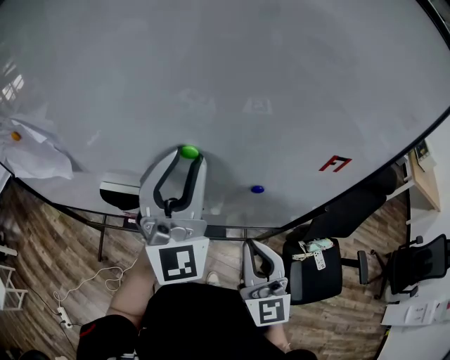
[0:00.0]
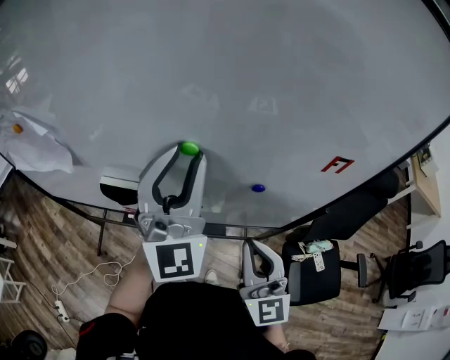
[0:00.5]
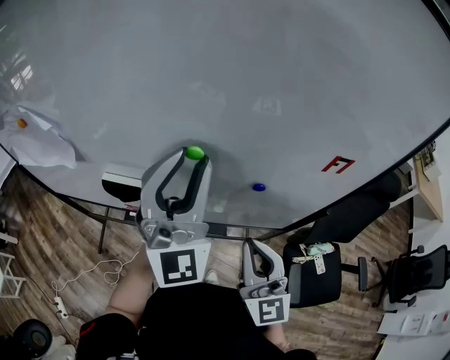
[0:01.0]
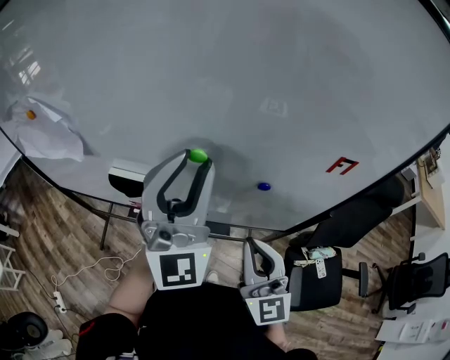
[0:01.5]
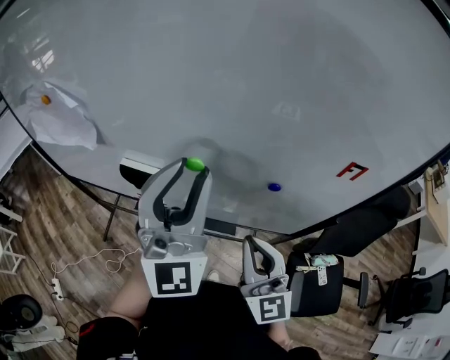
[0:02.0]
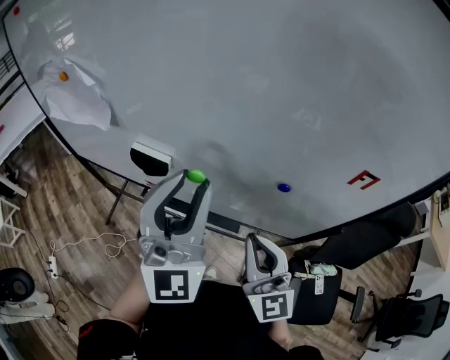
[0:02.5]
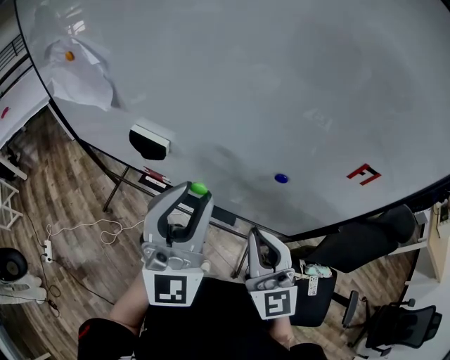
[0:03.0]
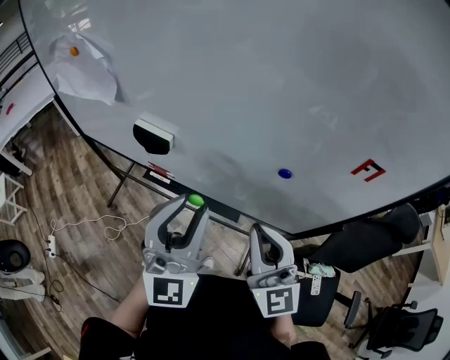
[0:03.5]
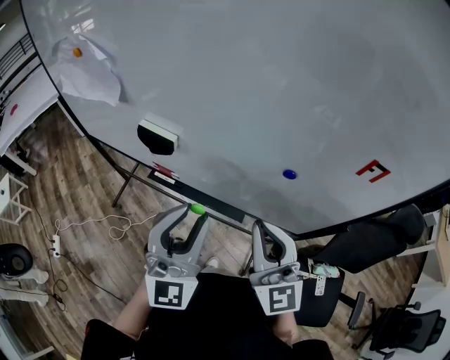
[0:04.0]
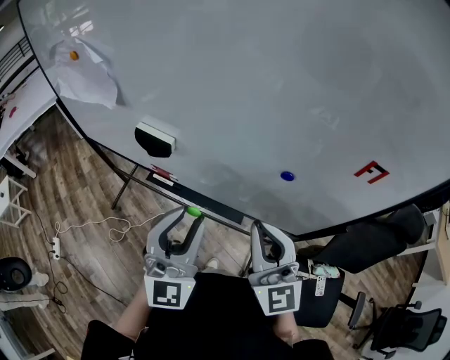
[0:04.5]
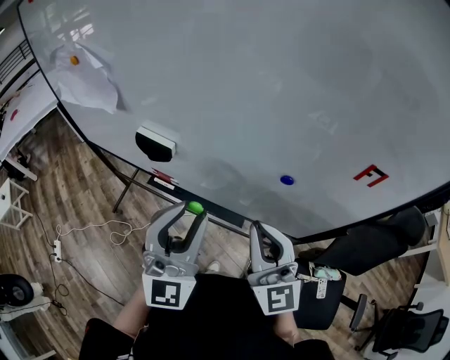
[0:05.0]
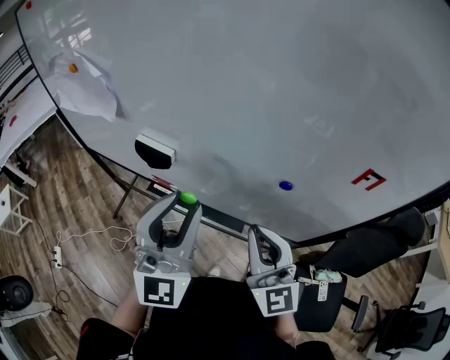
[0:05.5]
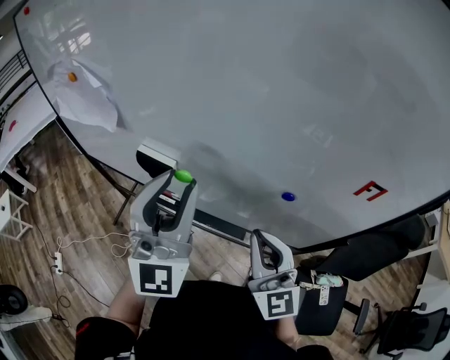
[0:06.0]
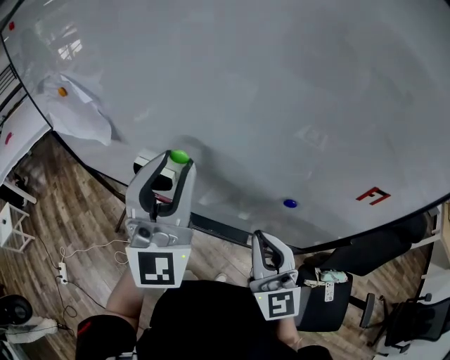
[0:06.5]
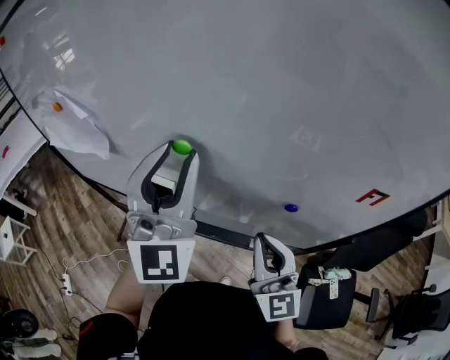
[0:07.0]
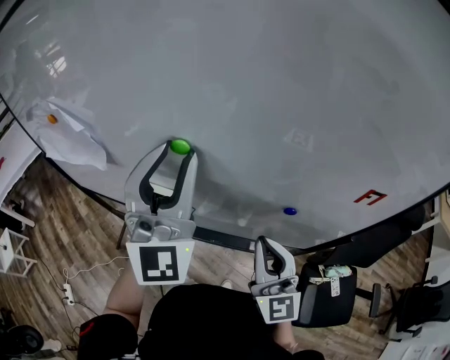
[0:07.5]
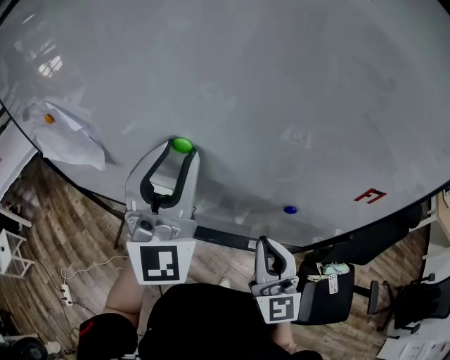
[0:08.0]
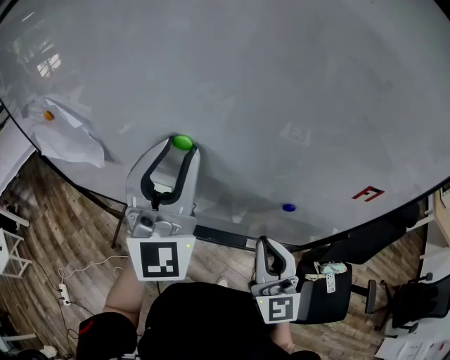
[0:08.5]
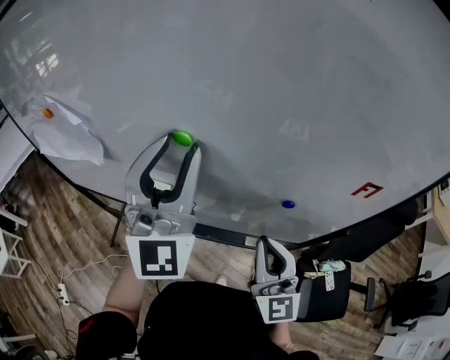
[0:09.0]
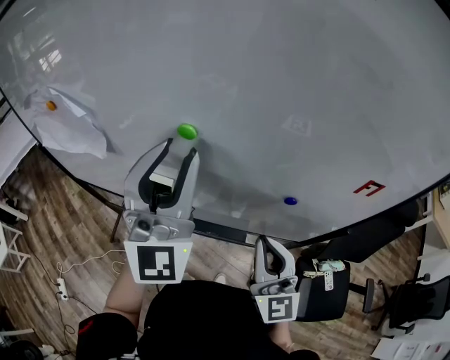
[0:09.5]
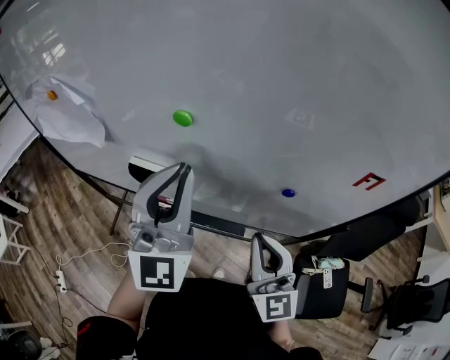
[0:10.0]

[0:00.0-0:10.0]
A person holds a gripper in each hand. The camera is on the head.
0:00.0 to 0:02.0: The left gripper is displaced backward by approximately 5 cm.
0:02.0 to 0:04.0: The left gripper heads downward and backward, covering some 15 cm.
0:04.0 to 0:06.0: The left gripper moves upward and forward, approximately 10 cm.
0:06.0 to 0:08.0: The left gripper travels forward and upward by some 10 cm.
0:08.0 to 0:10.0: The left gripper shifts by roughly 5 cm, and closes its fingers.

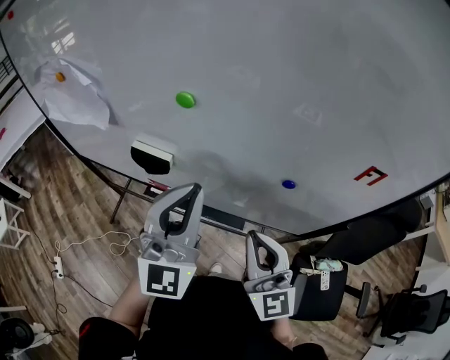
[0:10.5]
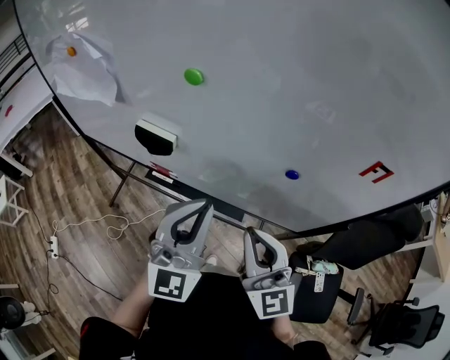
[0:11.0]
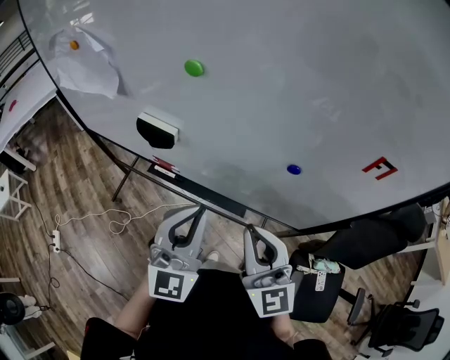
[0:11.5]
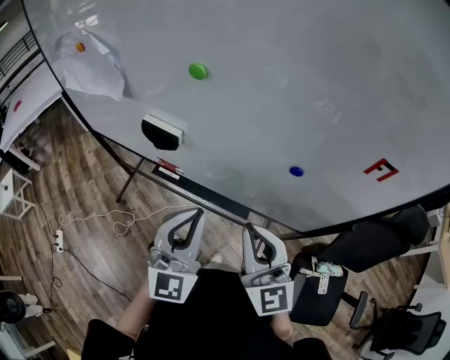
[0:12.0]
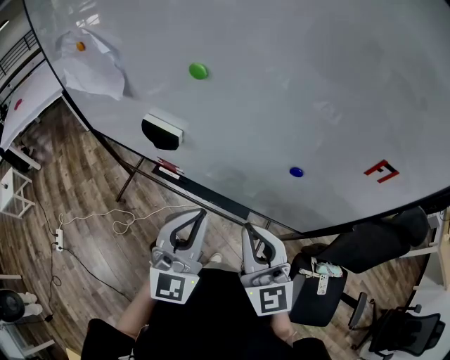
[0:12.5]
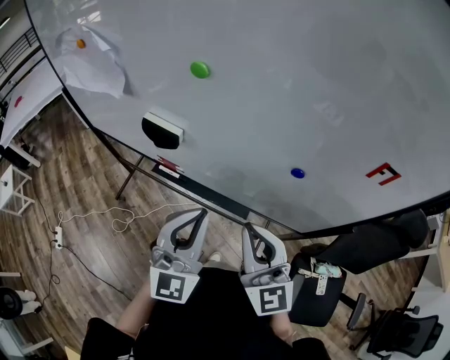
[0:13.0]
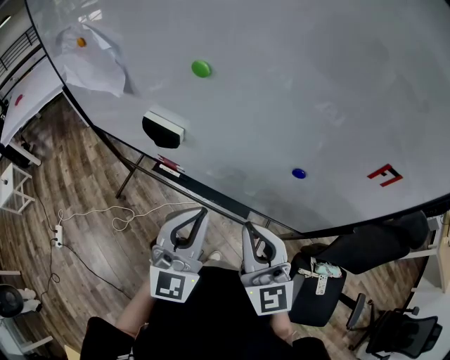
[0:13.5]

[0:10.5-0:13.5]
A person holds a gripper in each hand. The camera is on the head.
0:10.5 to 0:12.0: The left gripper heads downward and backward, covering some 10 cm.
0:12.0 to 0:13.5: Neither gripper changes place.

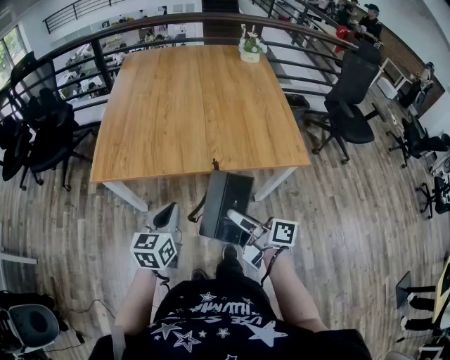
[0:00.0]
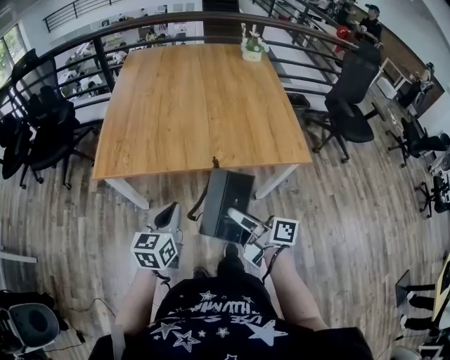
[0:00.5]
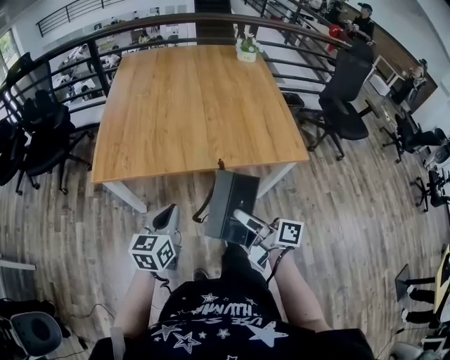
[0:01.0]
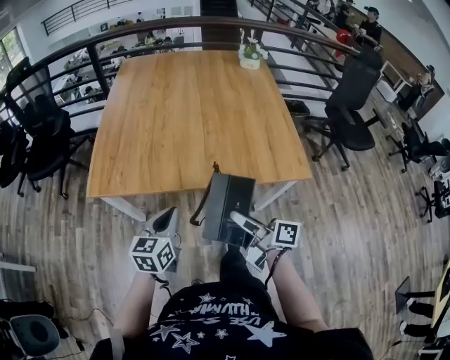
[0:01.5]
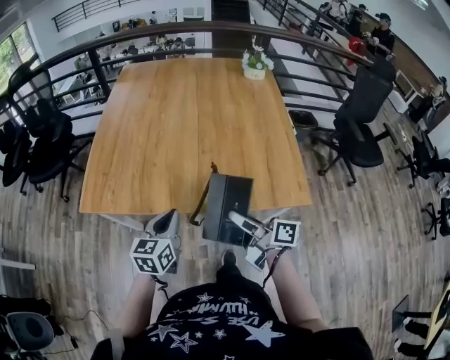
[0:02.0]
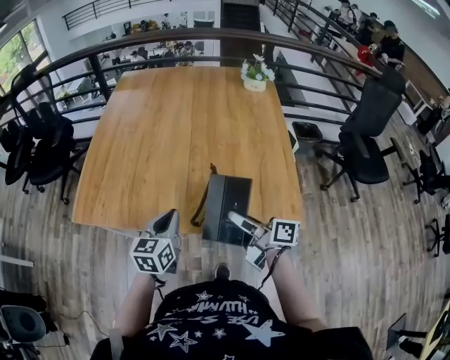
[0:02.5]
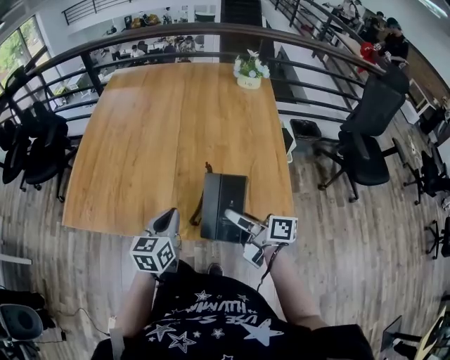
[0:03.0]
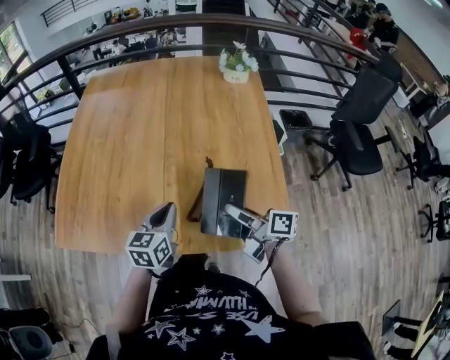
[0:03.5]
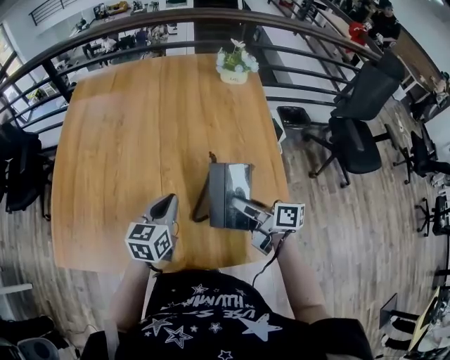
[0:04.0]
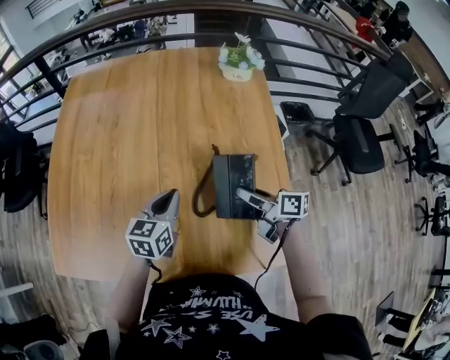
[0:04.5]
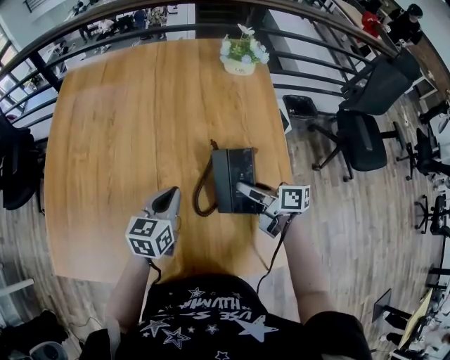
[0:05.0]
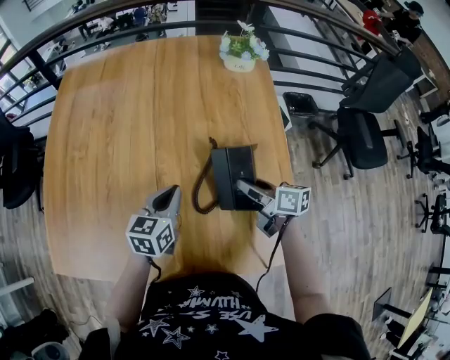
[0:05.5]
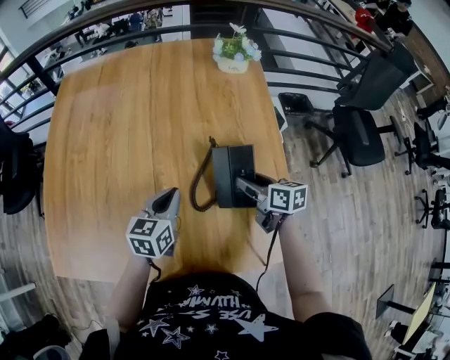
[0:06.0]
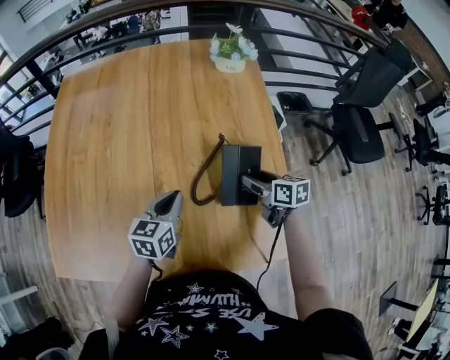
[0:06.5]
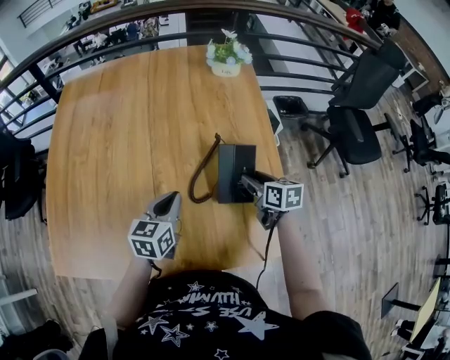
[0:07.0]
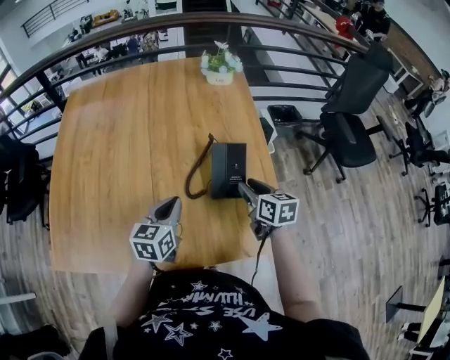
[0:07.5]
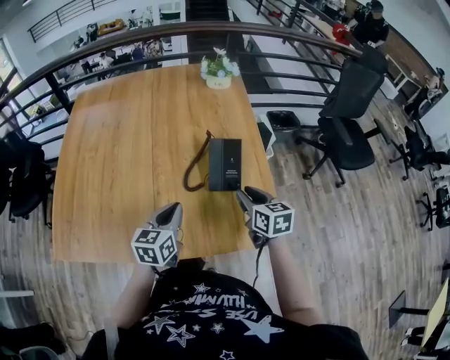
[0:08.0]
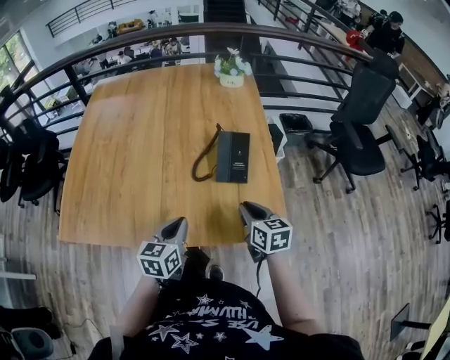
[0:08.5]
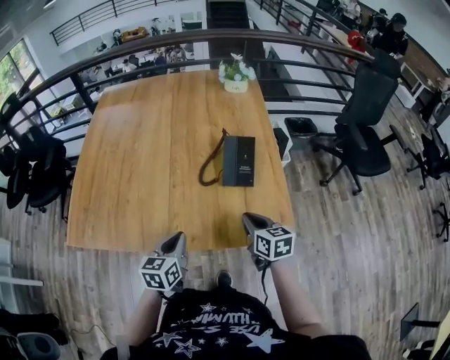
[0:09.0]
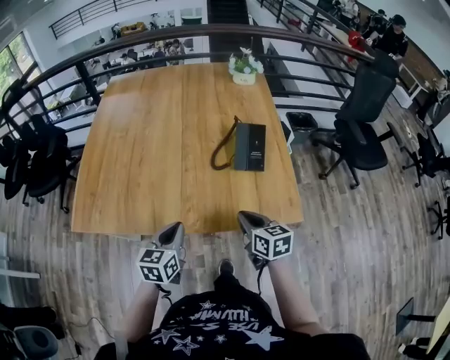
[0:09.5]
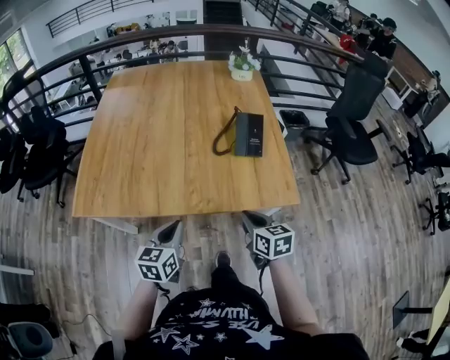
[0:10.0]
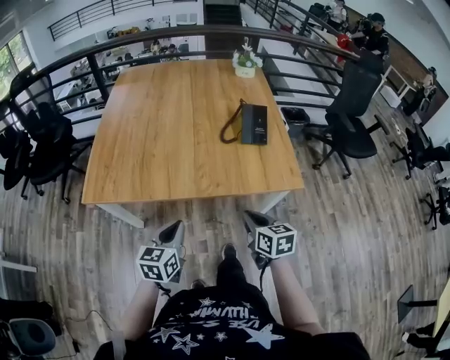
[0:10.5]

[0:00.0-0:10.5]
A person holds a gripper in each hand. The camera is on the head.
0:00.0 to 0:02.0: The two grippers go approximately 15 cm forward and to the right.
0:02.0 to 0:04.0: Both grippers move forward and to the right, some 30 cm.
0:04.0 to 0:06.5: The right gripper heads to the right, forward and downward, covering approximately 15 cm, swivels some 30 degrees, and opens its fingers; the left gripper moves some 5 cm.
0:06.5 to 0:08.5: The grippers both shift backward by some 20 cm. The right gripper closes.
0:08.5 to 0:10.5: Both grippers move backward and to the left, roughly 25 cm.

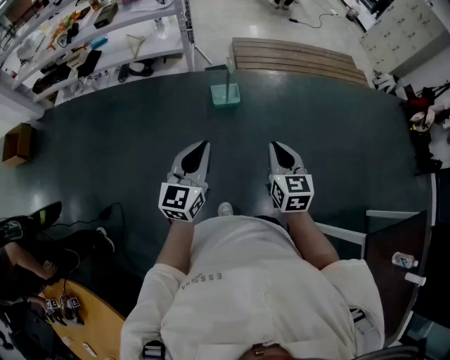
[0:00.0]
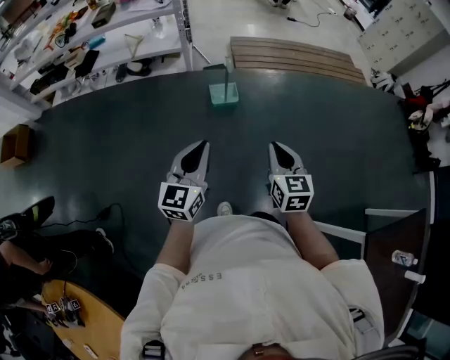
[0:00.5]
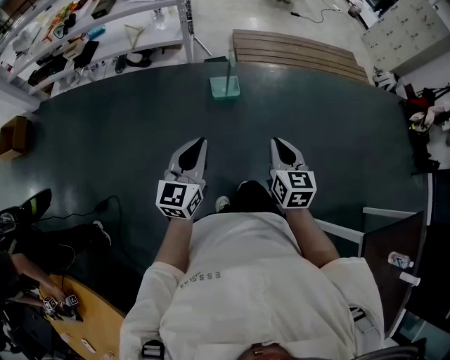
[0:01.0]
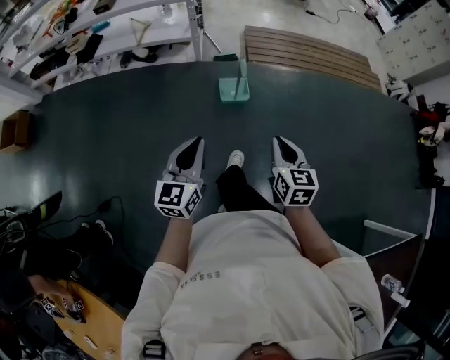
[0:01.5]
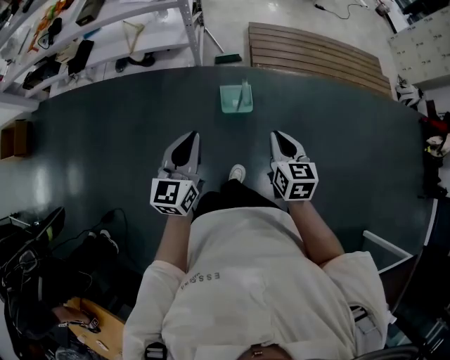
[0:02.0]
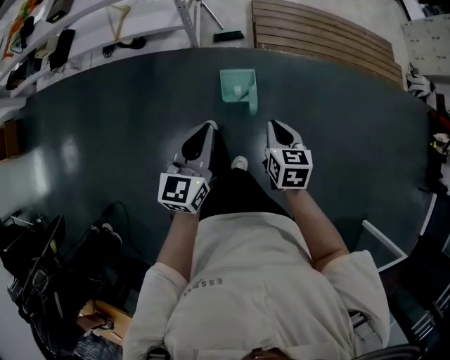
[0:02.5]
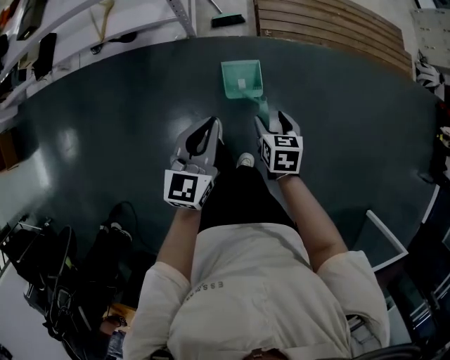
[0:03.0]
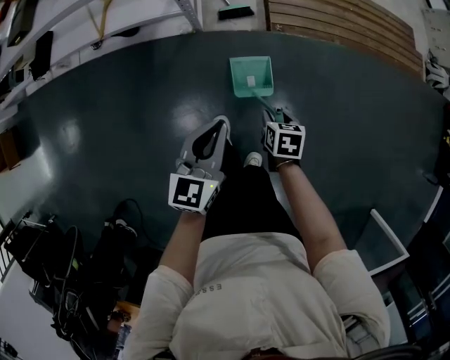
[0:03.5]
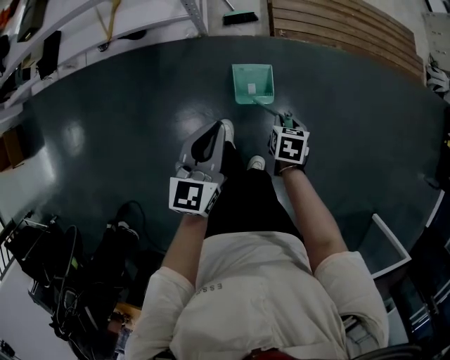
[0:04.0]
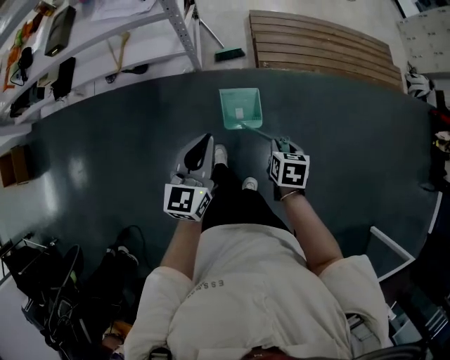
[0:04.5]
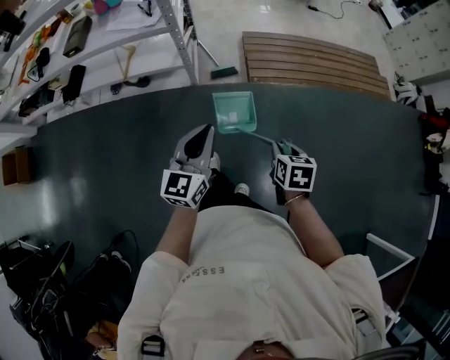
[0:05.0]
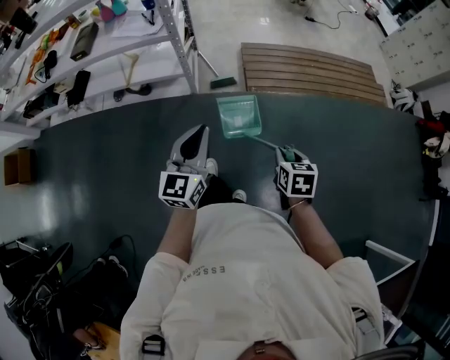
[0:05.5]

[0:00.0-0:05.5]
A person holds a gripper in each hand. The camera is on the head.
0:00.0 to 0:02.0: Both grippers move forward, some 30 cm.
0:02.0 to 0:03.5: The left gripper is displaced forward and downward by roughly 30 cm; the right gripper travels downward and forward by approximately 40 cm, tips its fingers downward by about 30 degrees, and opens up.
0:03.5 to 0:05.5: The left gripper is displaced upward and backward by about 25 cm, and changes its angle by approximately 20 degrees; the right gripper goes roughly 35 cm upward, backward and to the right.
